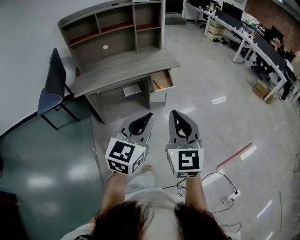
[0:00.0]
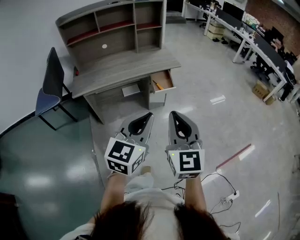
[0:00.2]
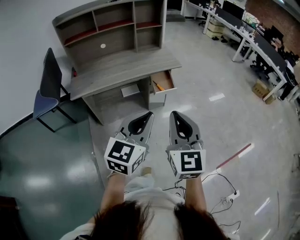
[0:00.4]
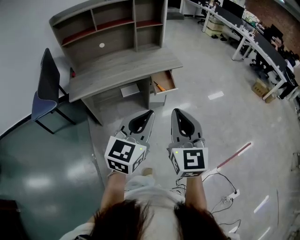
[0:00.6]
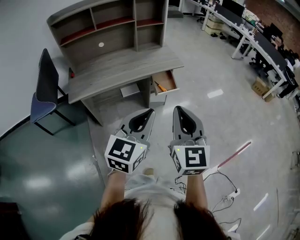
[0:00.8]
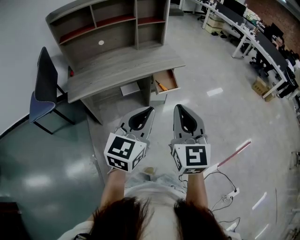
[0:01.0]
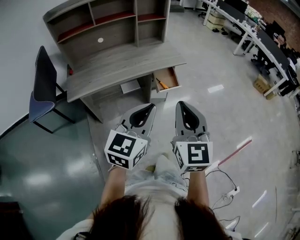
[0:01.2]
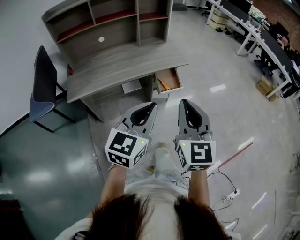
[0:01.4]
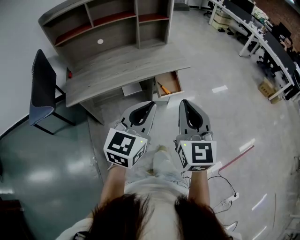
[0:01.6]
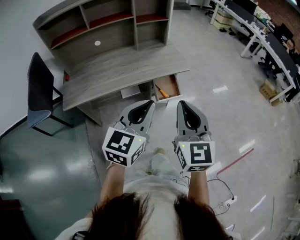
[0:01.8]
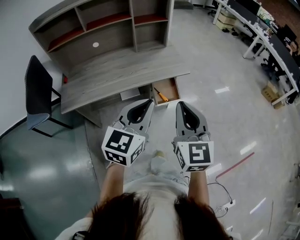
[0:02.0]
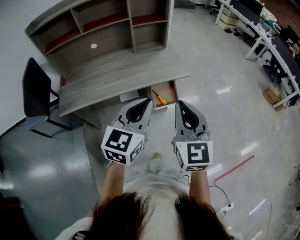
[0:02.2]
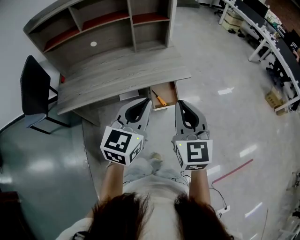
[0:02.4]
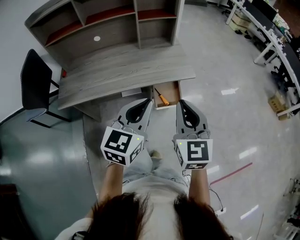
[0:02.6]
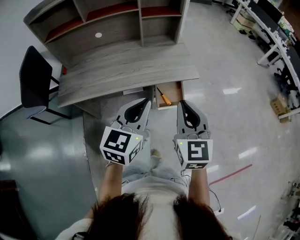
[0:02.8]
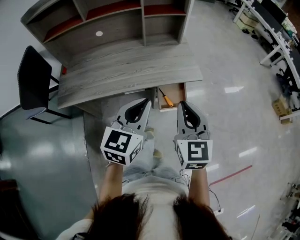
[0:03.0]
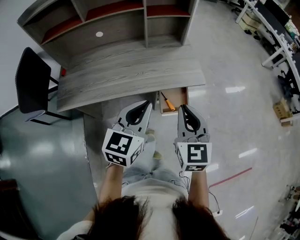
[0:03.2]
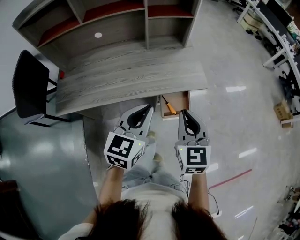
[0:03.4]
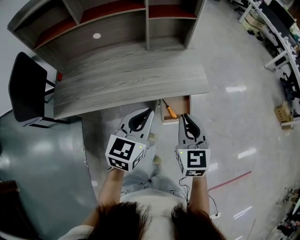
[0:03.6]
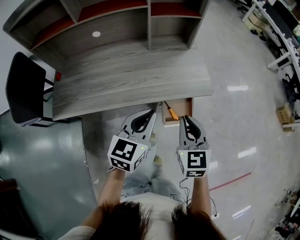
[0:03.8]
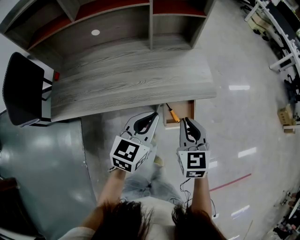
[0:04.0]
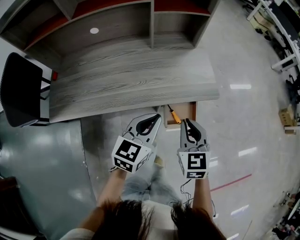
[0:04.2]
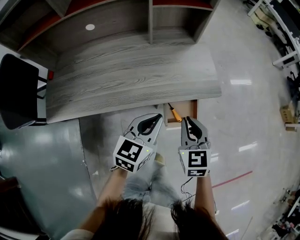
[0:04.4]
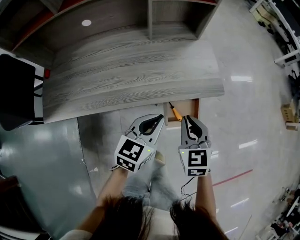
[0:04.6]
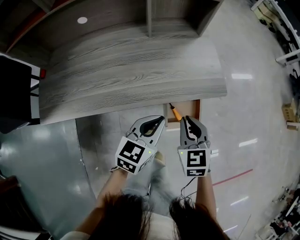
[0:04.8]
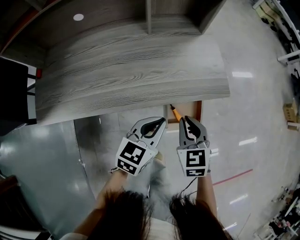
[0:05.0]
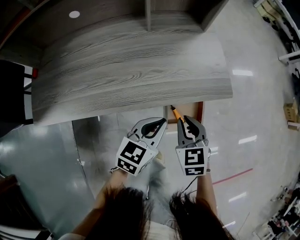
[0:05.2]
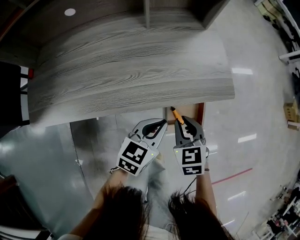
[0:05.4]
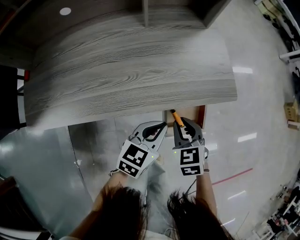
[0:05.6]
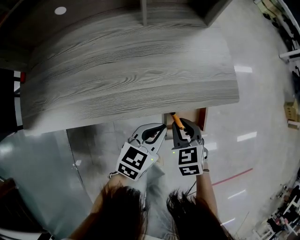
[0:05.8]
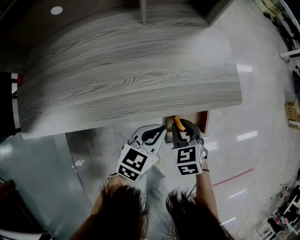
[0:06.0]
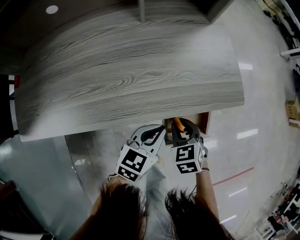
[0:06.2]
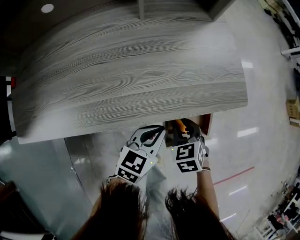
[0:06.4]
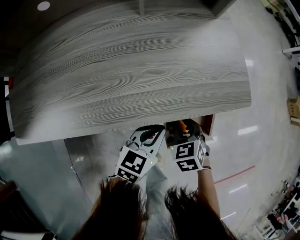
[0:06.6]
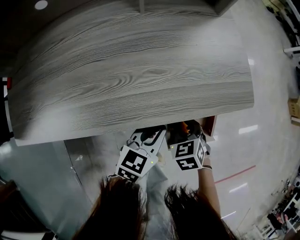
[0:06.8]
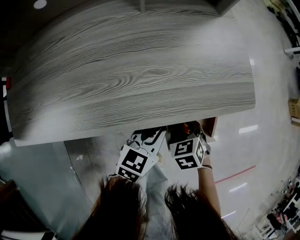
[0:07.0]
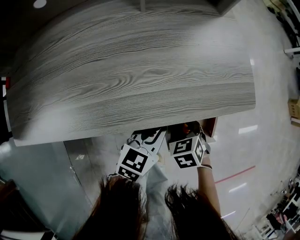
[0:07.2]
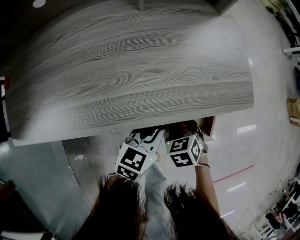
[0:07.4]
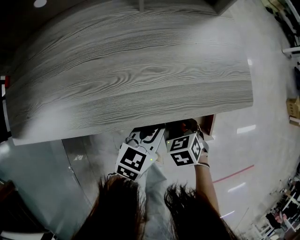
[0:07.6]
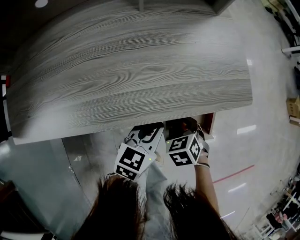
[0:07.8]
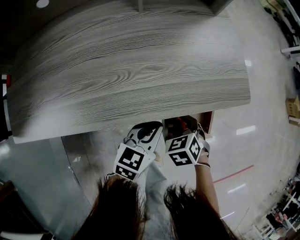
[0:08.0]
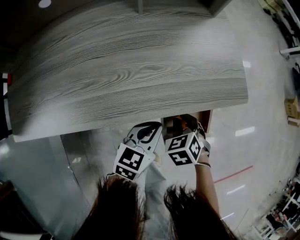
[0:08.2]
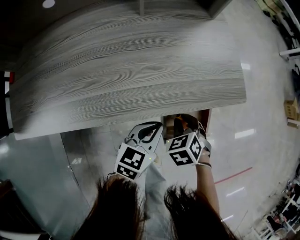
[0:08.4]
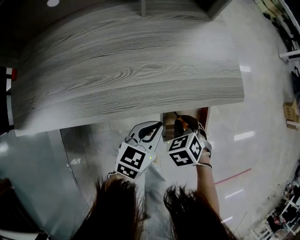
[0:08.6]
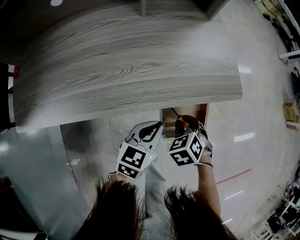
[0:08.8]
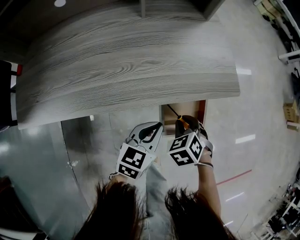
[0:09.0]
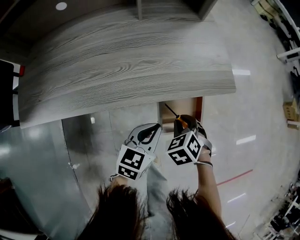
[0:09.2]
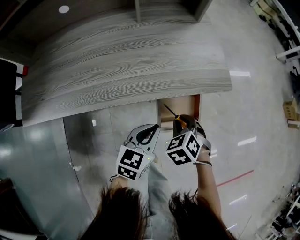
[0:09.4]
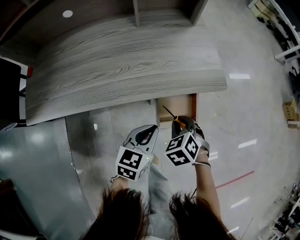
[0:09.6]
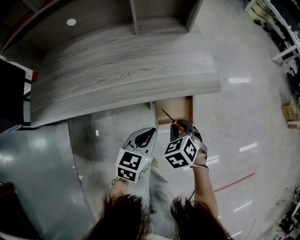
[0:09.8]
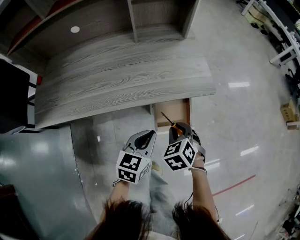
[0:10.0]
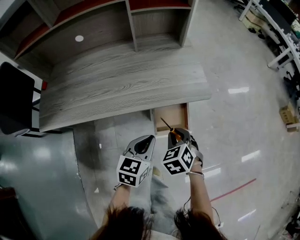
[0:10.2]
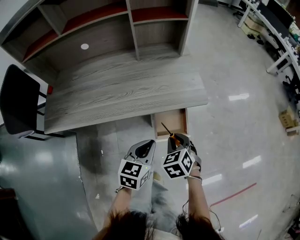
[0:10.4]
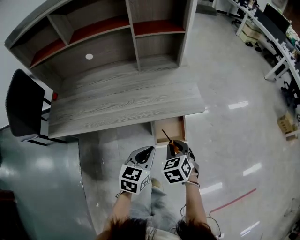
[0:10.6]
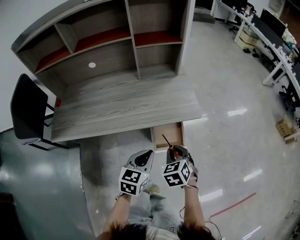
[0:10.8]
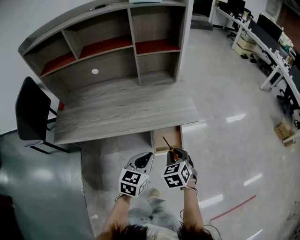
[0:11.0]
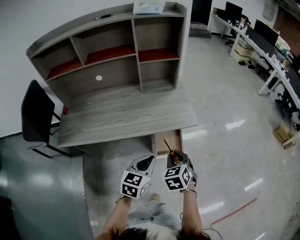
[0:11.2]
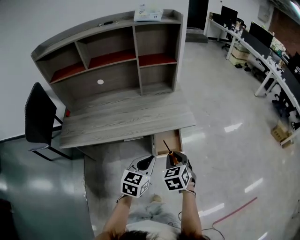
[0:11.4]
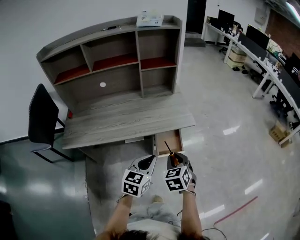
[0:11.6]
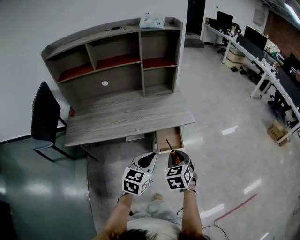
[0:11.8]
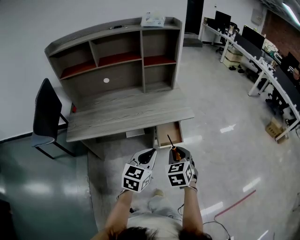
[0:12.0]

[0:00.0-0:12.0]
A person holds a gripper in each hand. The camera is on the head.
0:00.0 to 0:01.6: Both grippers travel together forward, about 20 cm.
0:01.6 to 0:03.0: Both grippers travel together forward, approximately 25 cm.
0:03.0 to 0:04.4: Both grippers move downward and forward, about 20 cm.
0:04.4 to 0:06.0: Both grippers move downward, some 20 cm. The right gripper rotates about 20 degrees.
0:06.0 to 0:07.6: The left gripper moves downward, some 5 cm. The right gripper heads downward, covering some 10 cm.
0:07.6 to 0:09.0: The right gripper moves upward, about 5 cm; the left gripper changes place by approximately 5 cm.
0:09.0 to 0:10.4: Both grippers travel together upward and backward, roughly 15 cm.
0:10.4 to 0:12.0: Both grippers travel together upward and backward, roughly 25 cm. The right gripper turns by approximately 20 degrees.

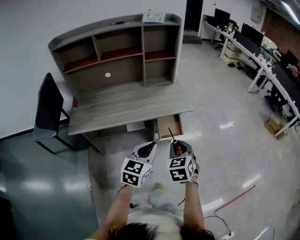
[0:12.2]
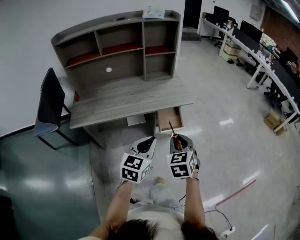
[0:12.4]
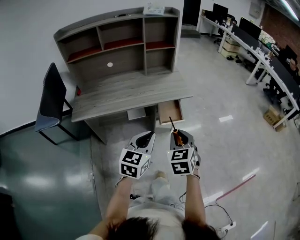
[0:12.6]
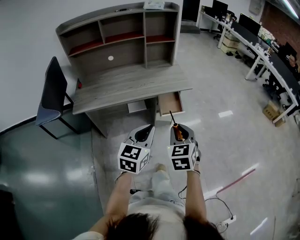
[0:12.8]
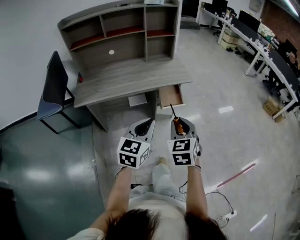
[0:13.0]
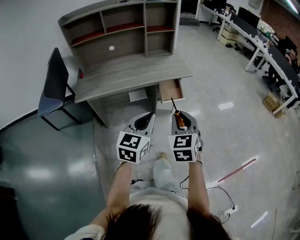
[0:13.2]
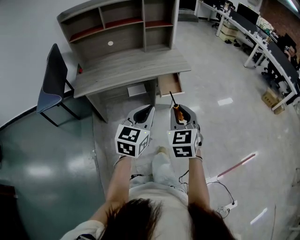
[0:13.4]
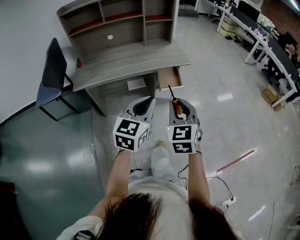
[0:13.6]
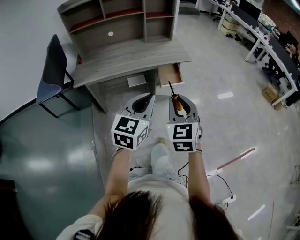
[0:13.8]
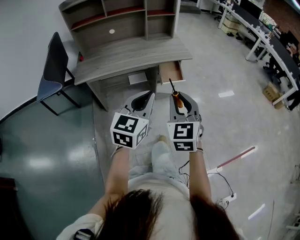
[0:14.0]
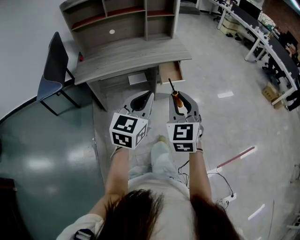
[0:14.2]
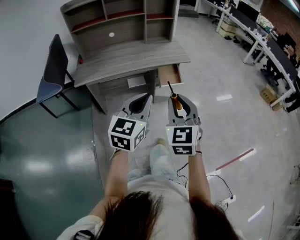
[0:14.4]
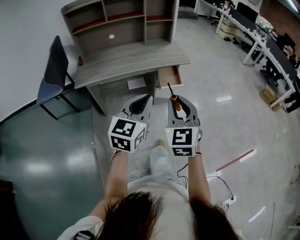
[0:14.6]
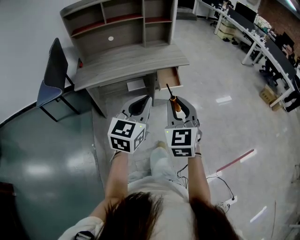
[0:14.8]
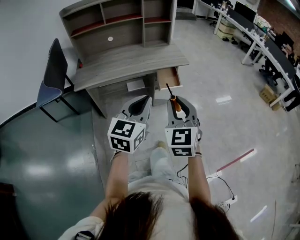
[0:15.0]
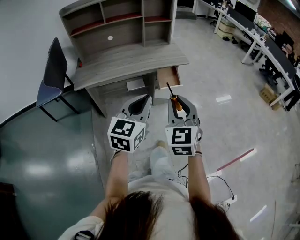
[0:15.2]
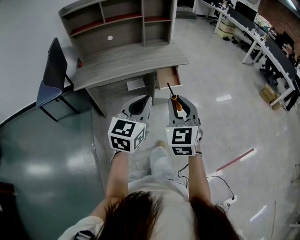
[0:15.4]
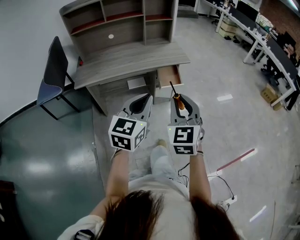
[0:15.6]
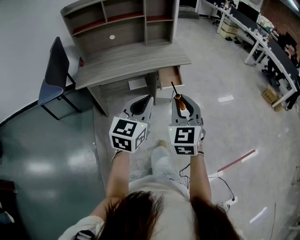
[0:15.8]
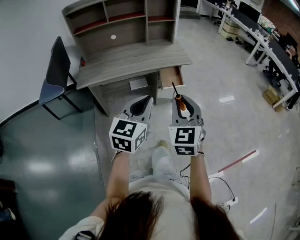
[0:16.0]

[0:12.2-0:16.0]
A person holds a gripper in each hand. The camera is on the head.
0:12.2 to 0:13.4: The right gripper moves backward and upward, some 20 cm. The left gripper shifts roughly 15 cm backward.
0:13.4 to 0:14.8: The left gripper ends up approximately 5 cm from where it was, while the right gripper heads backward, covering some 5 cm.
0:14.8 to 0:16.0: The grippers stay close to where they were, moving slightly.

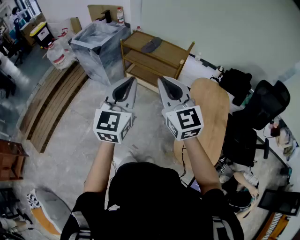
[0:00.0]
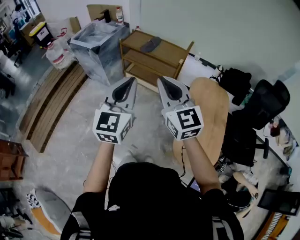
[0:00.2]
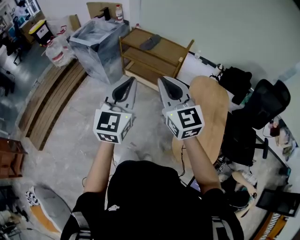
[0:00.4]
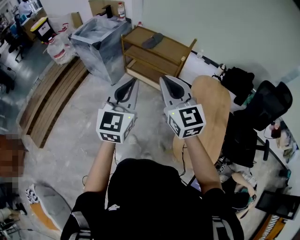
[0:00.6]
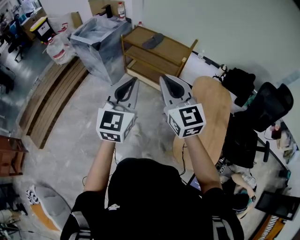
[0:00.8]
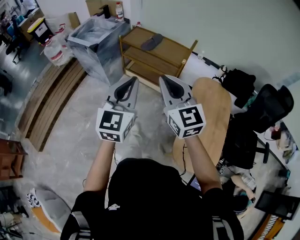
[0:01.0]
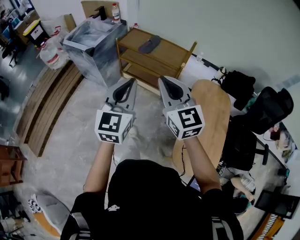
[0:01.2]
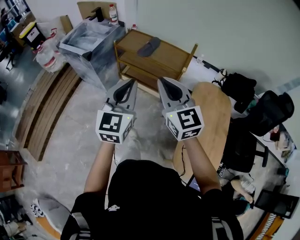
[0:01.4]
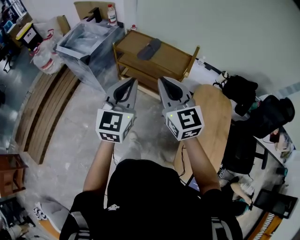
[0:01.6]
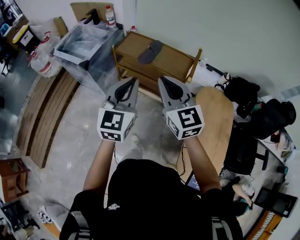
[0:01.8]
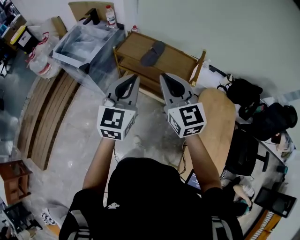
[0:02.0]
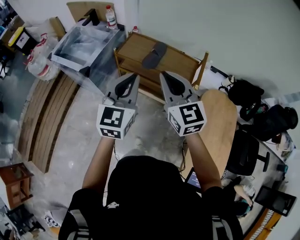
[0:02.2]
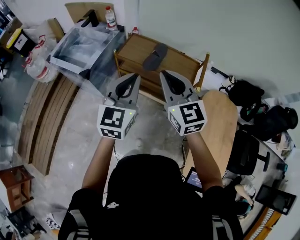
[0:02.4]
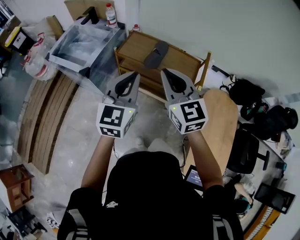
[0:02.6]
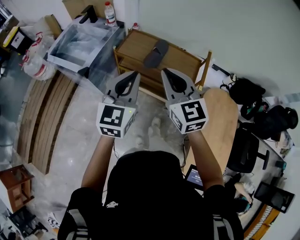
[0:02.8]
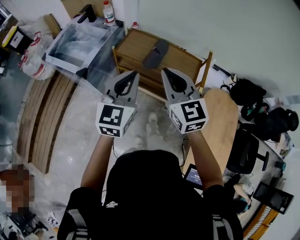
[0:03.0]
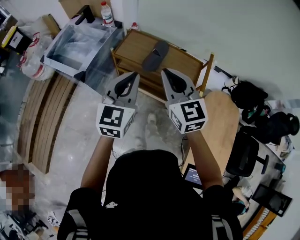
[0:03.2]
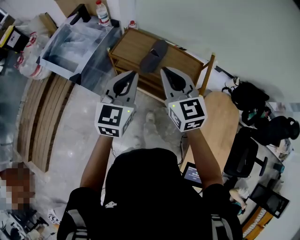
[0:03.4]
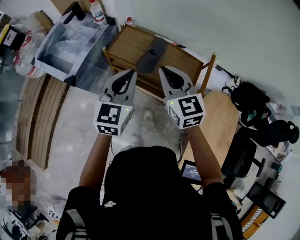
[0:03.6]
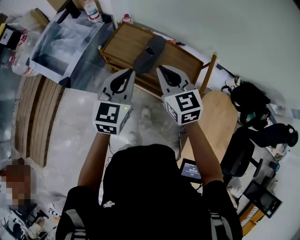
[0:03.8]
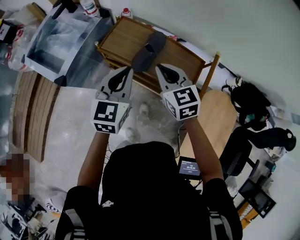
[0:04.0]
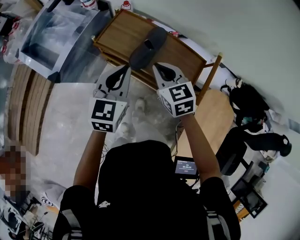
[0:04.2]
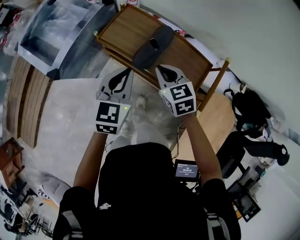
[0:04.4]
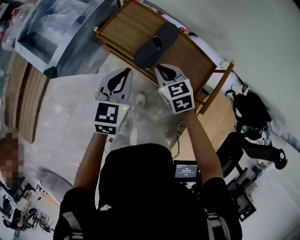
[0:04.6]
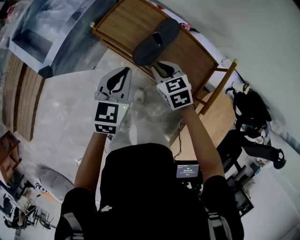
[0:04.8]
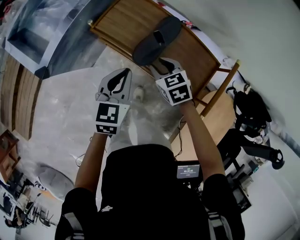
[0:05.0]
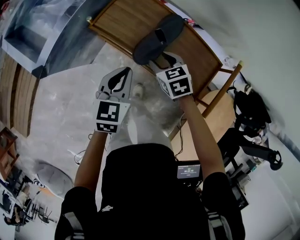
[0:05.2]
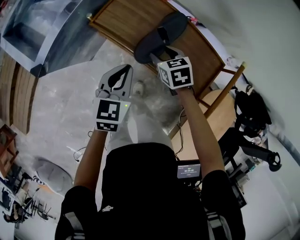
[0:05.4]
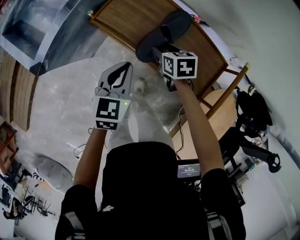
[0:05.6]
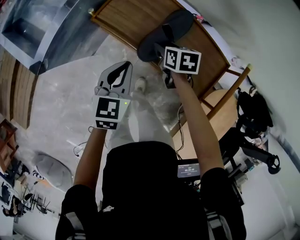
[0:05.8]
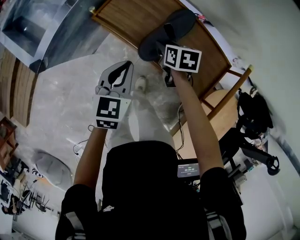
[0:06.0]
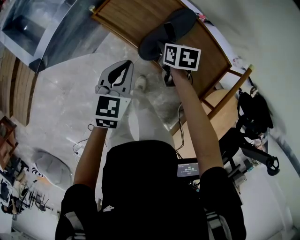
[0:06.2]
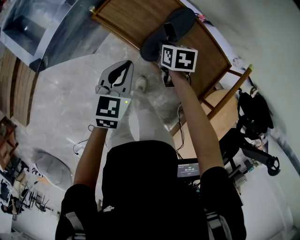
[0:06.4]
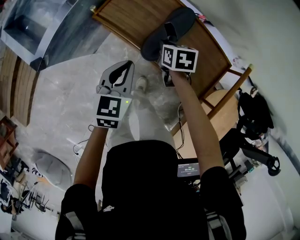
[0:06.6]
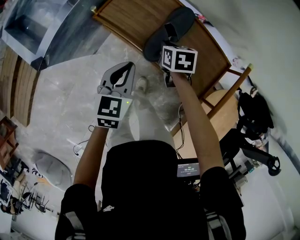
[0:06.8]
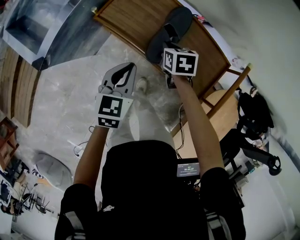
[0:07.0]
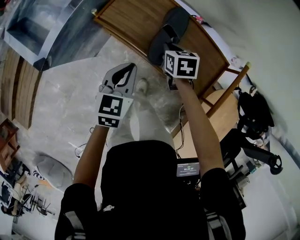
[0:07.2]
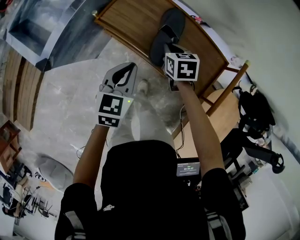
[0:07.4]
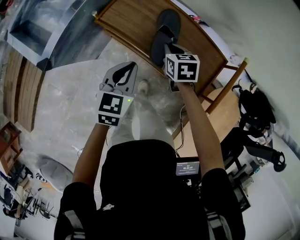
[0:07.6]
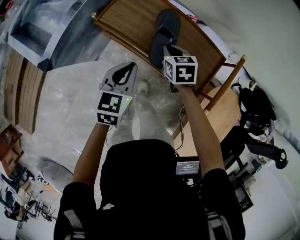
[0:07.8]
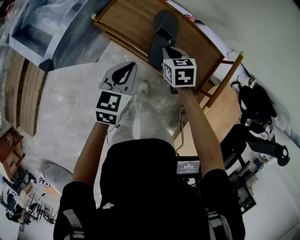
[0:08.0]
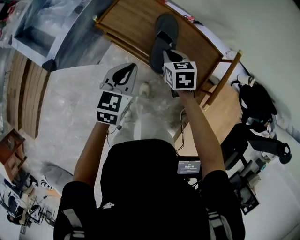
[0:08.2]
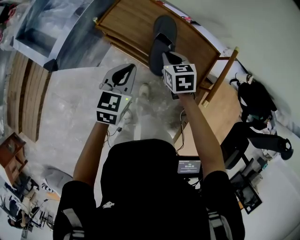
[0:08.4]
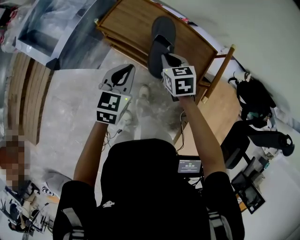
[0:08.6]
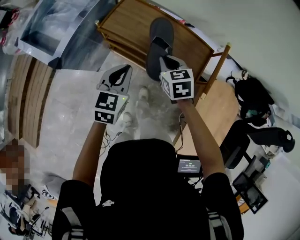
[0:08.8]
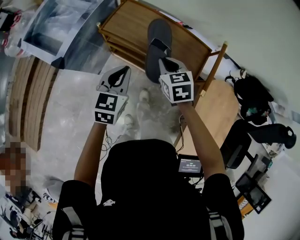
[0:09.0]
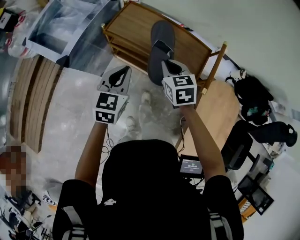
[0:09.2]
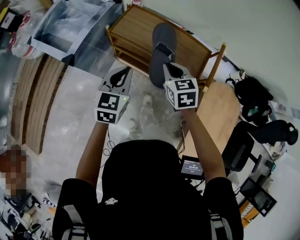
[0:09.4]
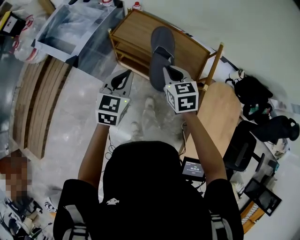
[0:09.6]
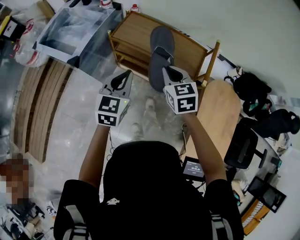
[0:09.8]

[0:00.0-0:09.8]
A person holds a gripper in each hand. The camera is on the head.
0:00.0 to 0:01.4: The two grippers go approximately 15 cm forward.
0:01.4 to 0:02.8: Both grippers move forward, about 25 cm.
0:02.8 to 0:04.2: The two grippers go some 30 cm forward and downward. The right gripper swivels approximately 30 degrees.
0:04.2 to 0:05.6: The two grippers go about 20 cm downward. The right gripper turns by some 30 degrees, and opens its fingers.
0:05.6 to 0:07.0: The right gripper closes its fingers.
0:07.0 to 0:08.4: The left gripper moves upward, about 5 cm, while the right gripper goes roughly 15 cm upward and backward.
0:08.4 to 0:09.8: The grippers both shift backward and upward by roughly 20 cm.
